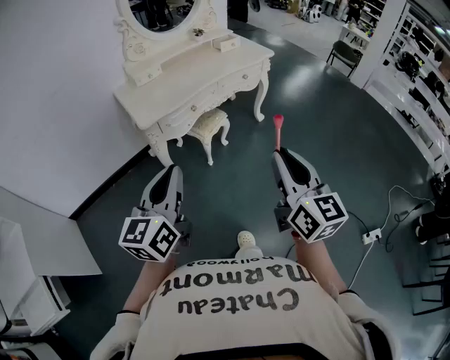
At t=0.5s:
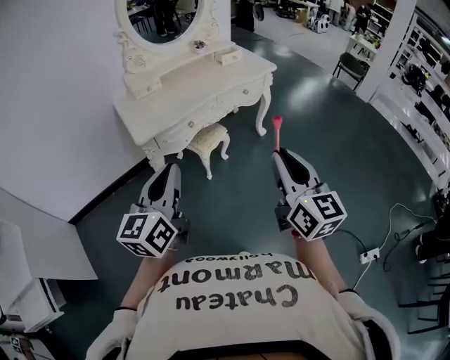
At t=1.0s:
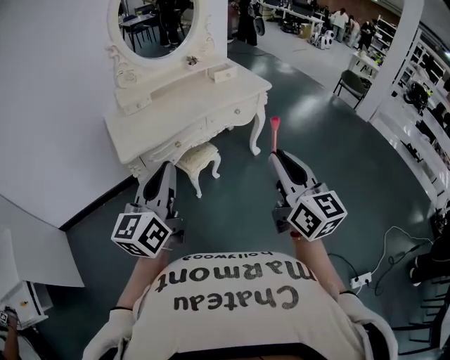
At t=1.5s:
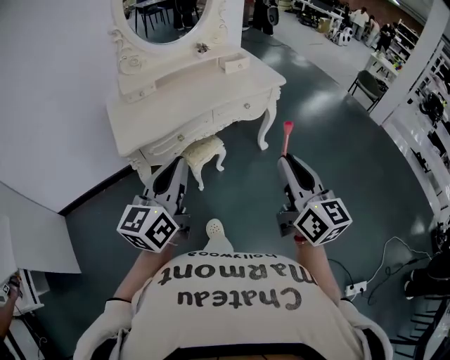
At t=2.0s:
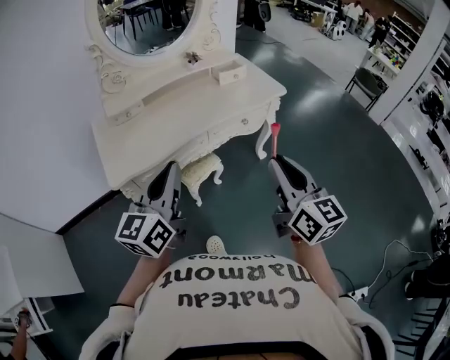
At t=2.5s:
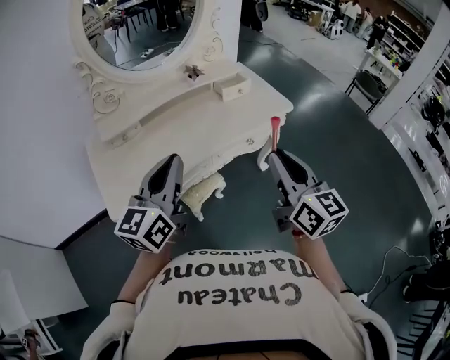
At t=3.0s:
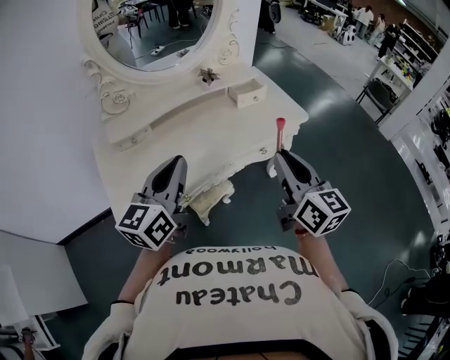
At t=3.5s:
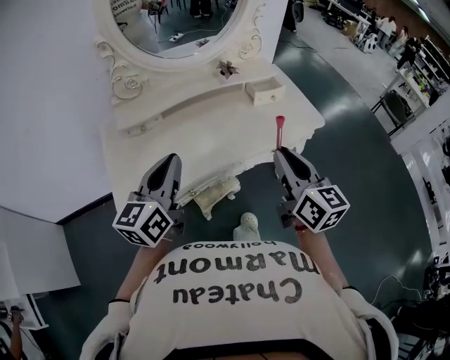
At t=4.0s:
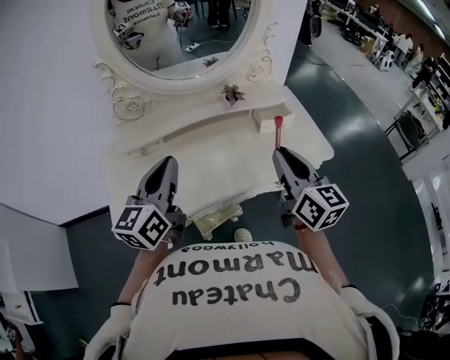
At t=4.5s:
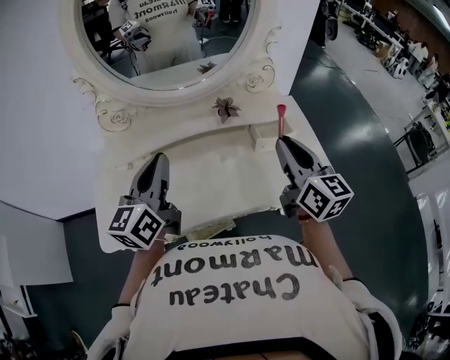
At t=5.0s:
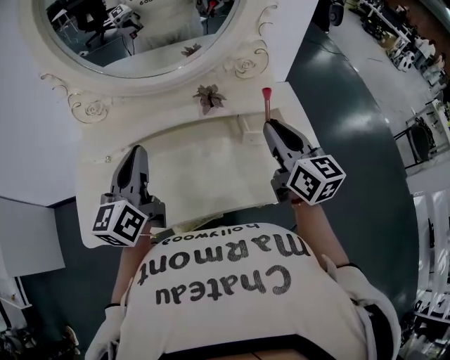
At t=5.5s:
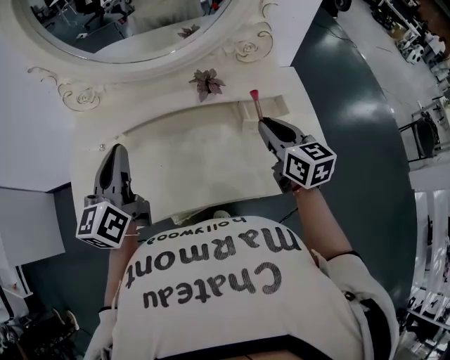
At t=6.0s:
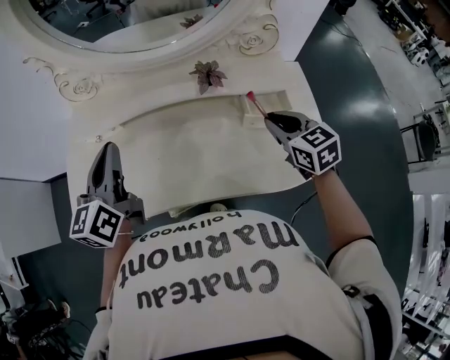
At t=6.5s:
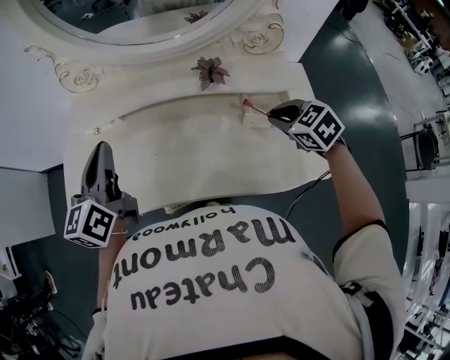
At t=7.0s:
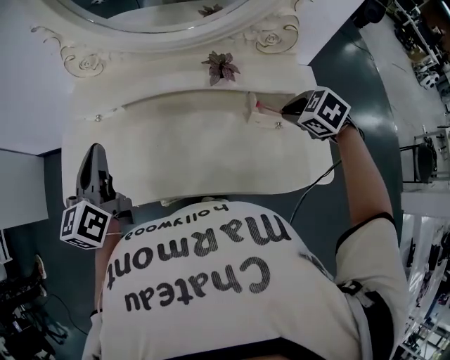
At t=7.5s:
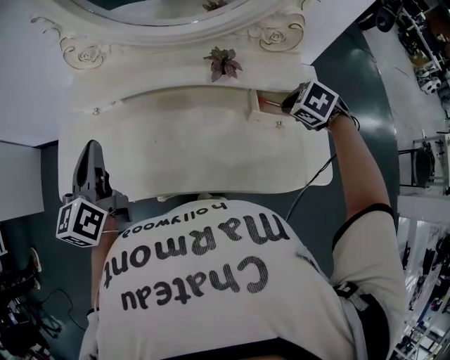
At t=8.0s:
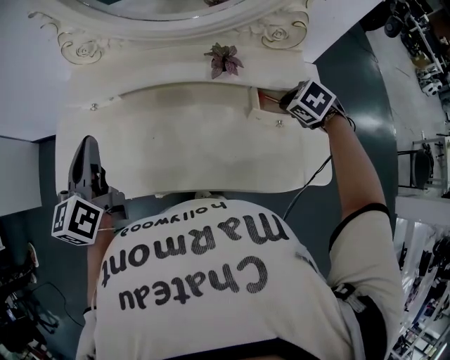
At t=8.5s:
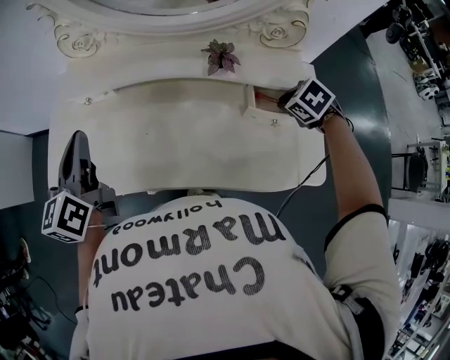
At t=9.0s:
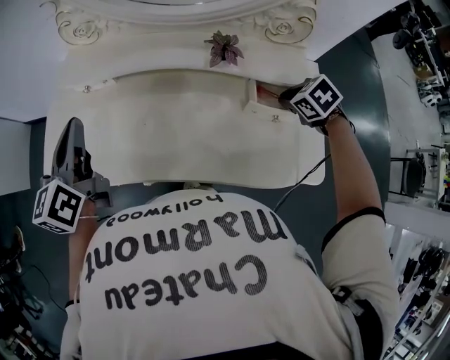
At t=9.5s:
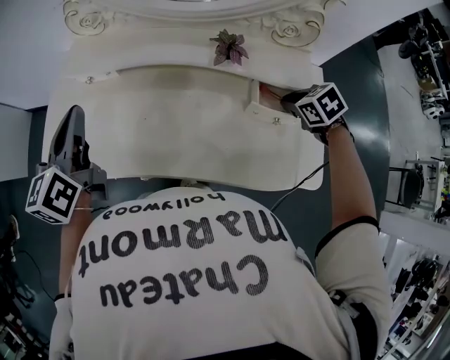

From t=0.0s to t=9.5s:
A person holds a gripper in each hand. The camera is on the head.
From t=0.0s to t=2.0s: Both grippers move forward, approximately 35 cm.
From t=2.0s to t=4.0s: The grippers both shift forward by some 30 cm.
From t=4.0s to t=5.5s: The left gripper goes about 10 cm forward, and changes its angle by approximately 20 degrees. Meanwhile the right gripper shifts some 25 cm forward, downward and to the right, and rotates roughly 20 degrees.
From t=5.5s to t=7.5s: The right gripper moves downward, about 10 cm, and points its fingers approximately 60 degrees further downward; the left gripper moves about 10 cm.
From t=7.5s to t=9.5s: The grippers make only small movements.

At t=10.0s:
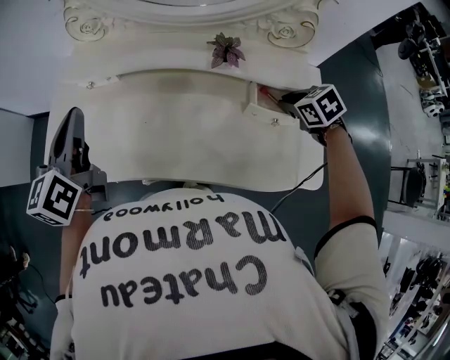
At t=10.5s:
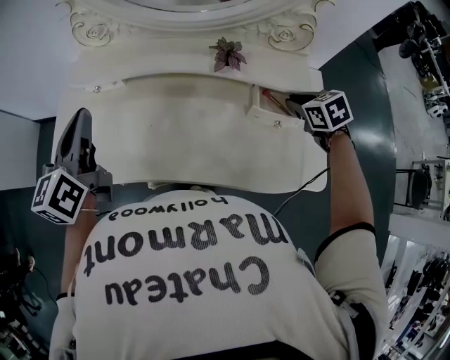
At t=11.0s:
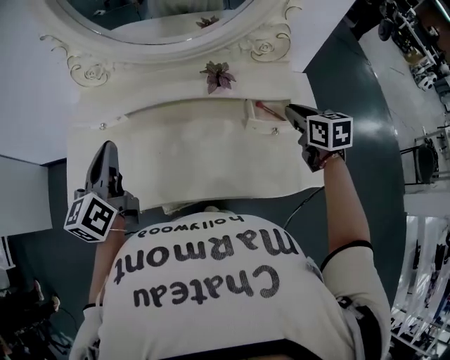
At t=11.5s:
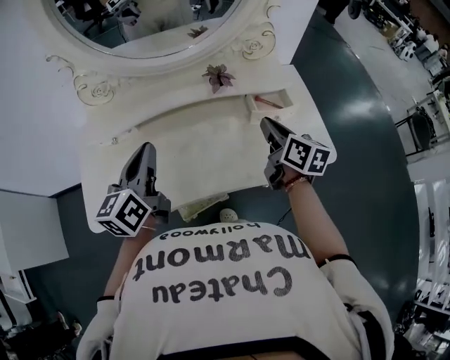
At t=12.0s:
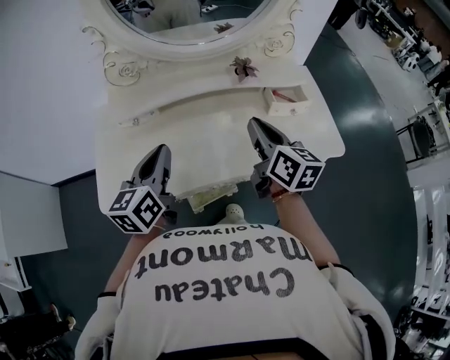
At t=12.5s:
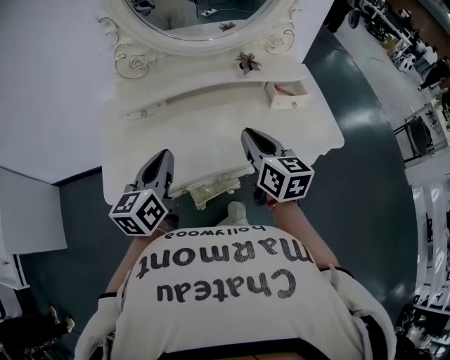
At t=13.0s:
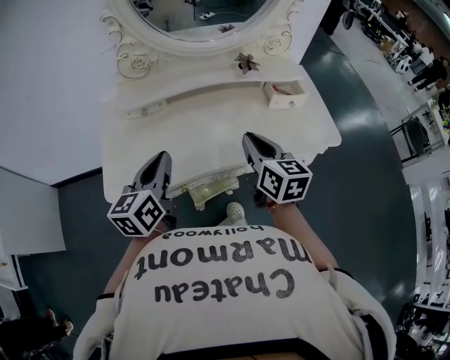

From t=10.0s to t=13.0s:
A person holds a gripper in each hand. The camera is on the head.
From t=10.0s to t=11.5s: The left gripper changes place by roughly 5 cm, and turns by some 20 degrees. The right gripper changes place by roughly 15 cm, and tips its fingers upward by about 50 degrees.
From t=11.5s to t=13.0s: The left gripper travels backward and to the left by roughly 15 cm; the right gripper shifts about 20 cm to the left and backward.

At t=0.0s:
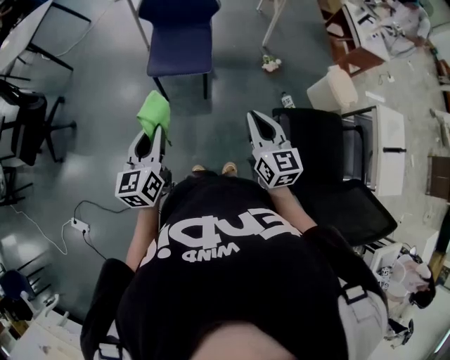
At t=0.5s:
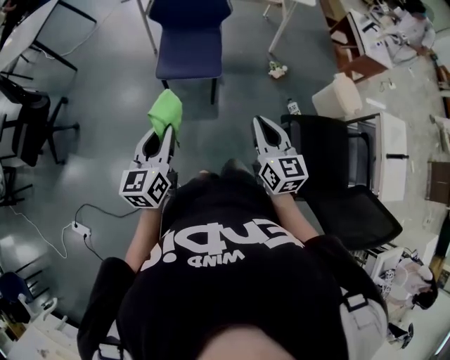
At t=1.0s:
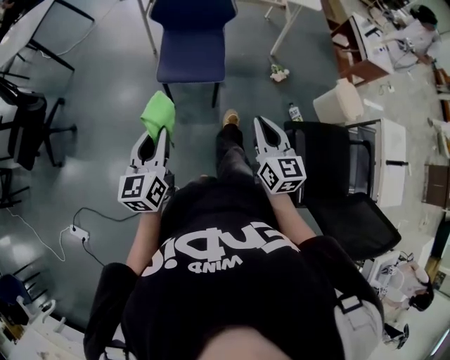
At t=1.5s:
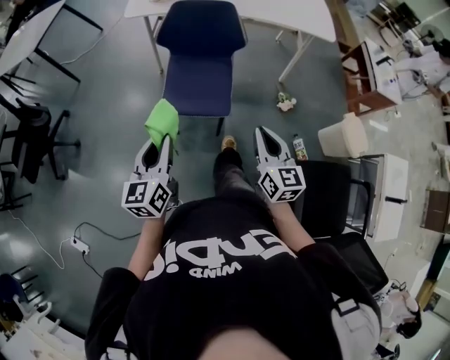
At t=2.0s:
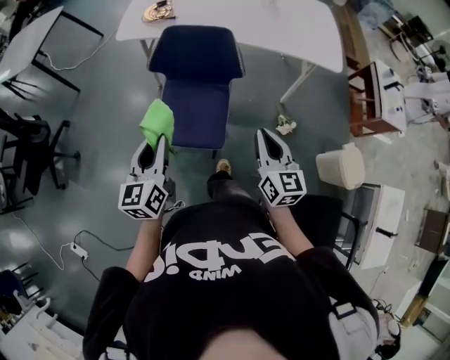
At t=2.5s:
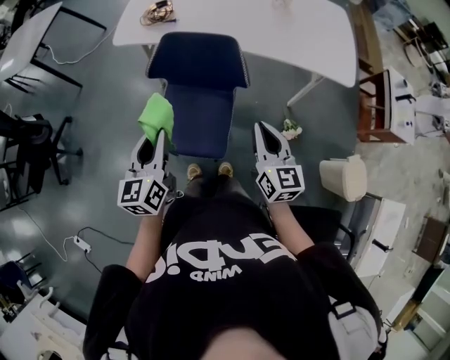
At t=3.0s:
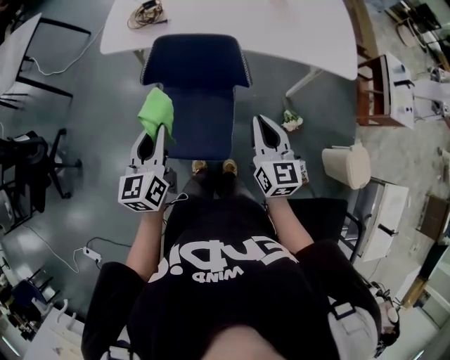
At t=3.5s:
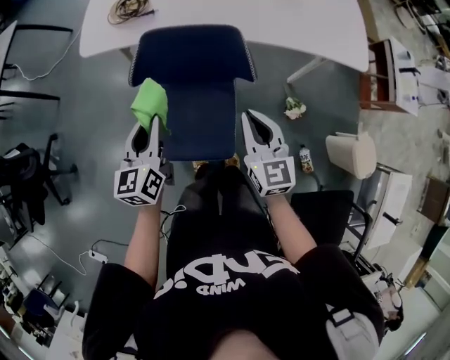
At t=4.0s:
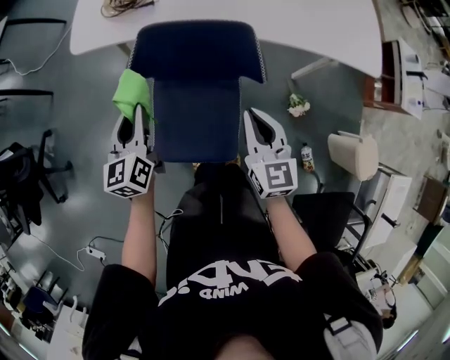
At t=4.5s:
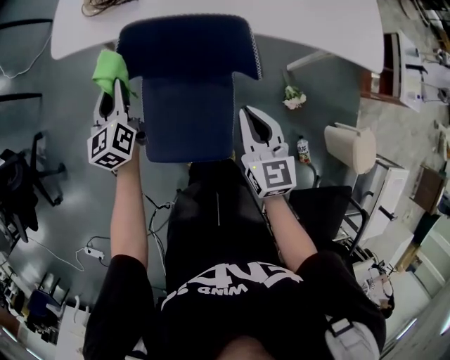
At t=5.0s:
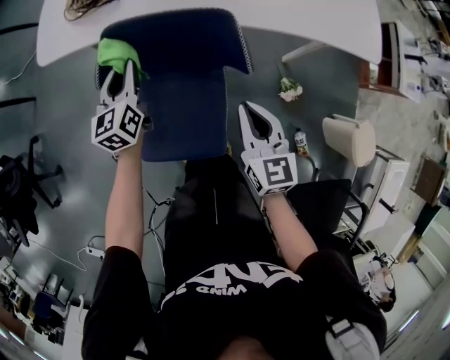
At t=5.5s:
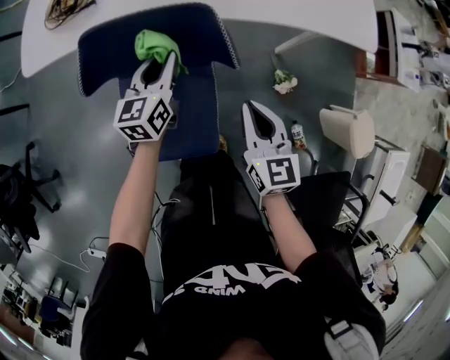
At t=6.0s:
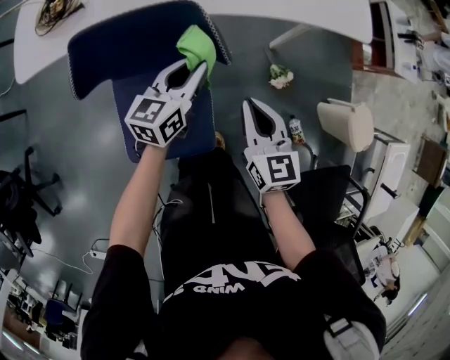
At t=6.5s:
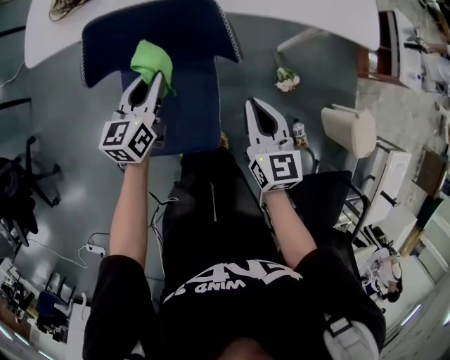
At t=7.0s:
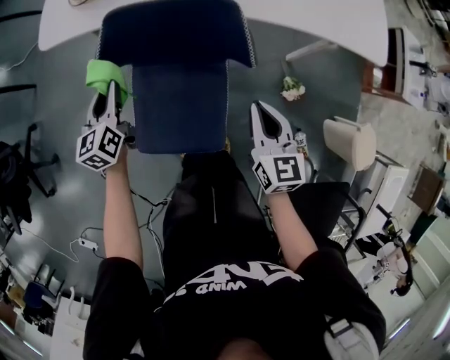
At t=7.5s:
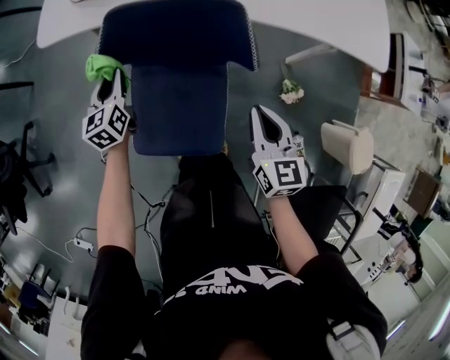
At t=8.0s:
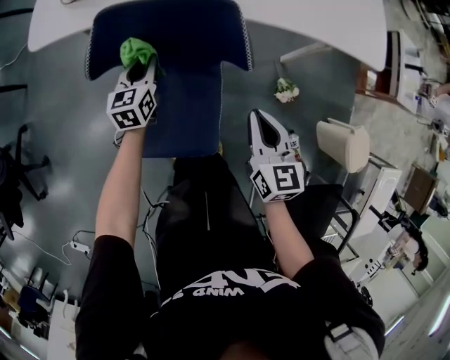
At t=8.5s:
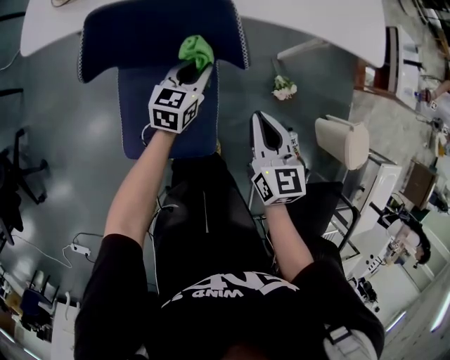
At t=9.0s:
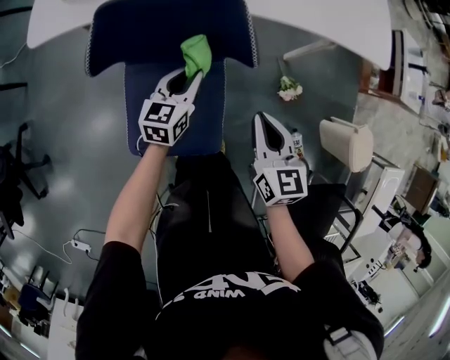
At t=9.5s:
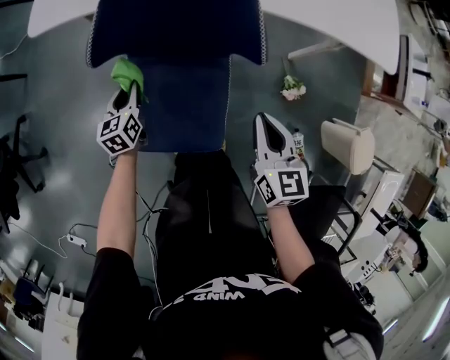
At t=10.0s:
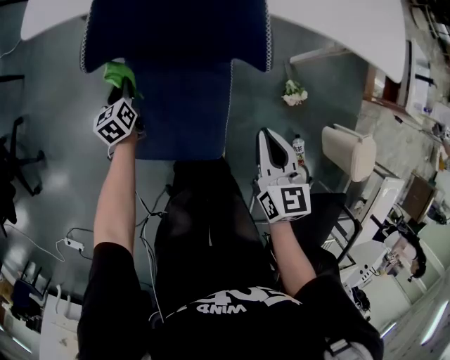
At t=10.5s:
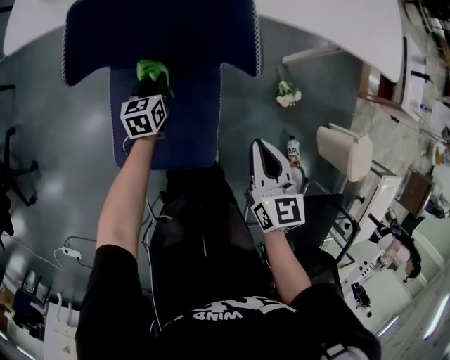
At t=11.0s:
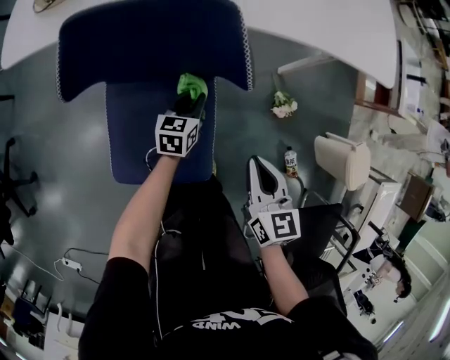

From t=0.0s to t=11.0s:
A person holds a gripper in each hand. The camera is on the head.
From t=0.0s to t=2.0s: The grippers both shift forward by approximately 40 cm.
From t=2.0s to t=3.5s: The two grippers go about 25 cm forward.
From t=3.5s to t=5.5s: The right gripper goes approximately 10 cm downward and to the right. Meanwhile the left gripper travels forward, to the right and downward by approximately 25 cm.
From t=5.5s to t=7.5s: The left gripper changes place by approximately 20 cm, and rotates some 20 degrees.
From t=7.5s to t=9.0s: The left gripper goes approximately 20 cm to the right, and turns by approximately 30 degrees.
From t=9.0s to t=11.0s: The left gripper travels downward by roughly 15 cm, and reaches about 25 cm to the left, then returns; the right gripper is displaced downward by approximately 5 cm.

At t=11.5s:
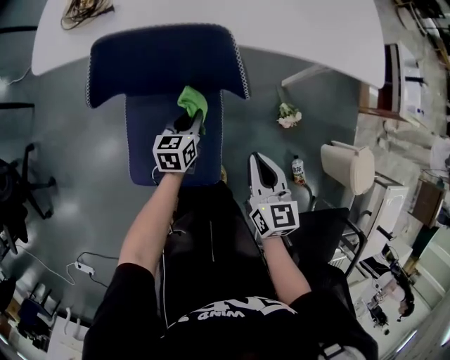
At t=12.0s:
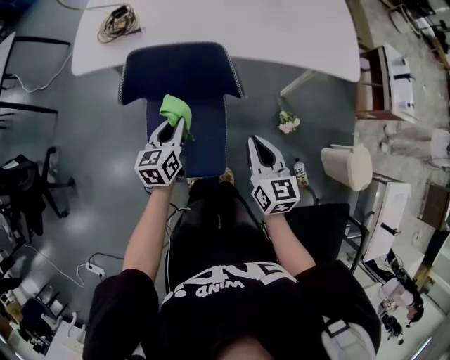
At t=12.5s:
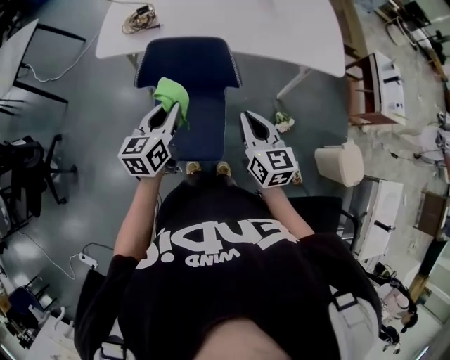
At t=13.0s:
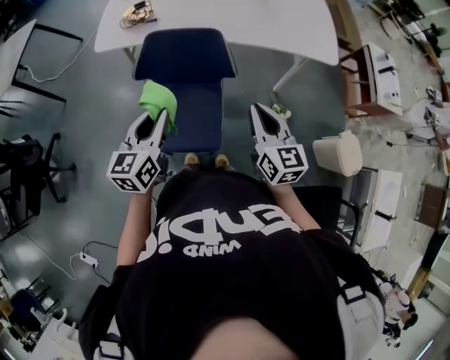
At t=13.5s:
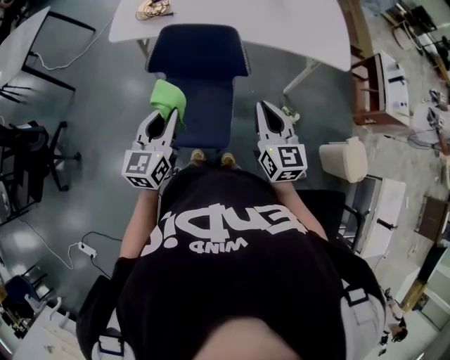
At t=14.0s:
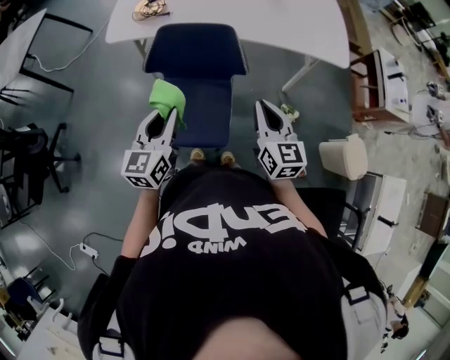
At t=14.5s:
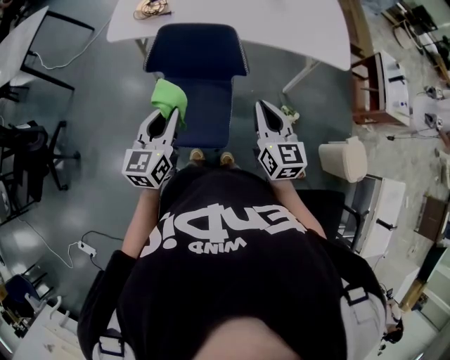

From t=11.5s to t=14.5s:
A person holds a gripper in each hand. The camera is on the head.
From t=11.5s to t=13.0s: The right gripper is displaced upward by about 25 cm. Meanwhile the left gripper goes about 40 cm upward and backward, and rotates about 20 degrees.
From t=13.0s to t=14.5s: The grippers make only small movements.
